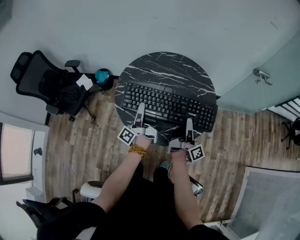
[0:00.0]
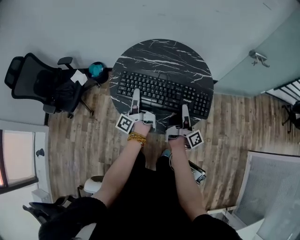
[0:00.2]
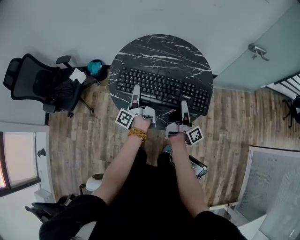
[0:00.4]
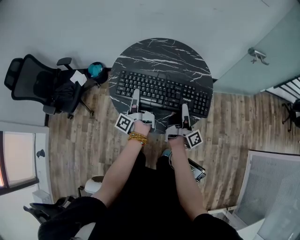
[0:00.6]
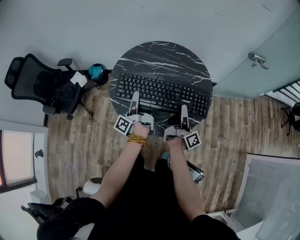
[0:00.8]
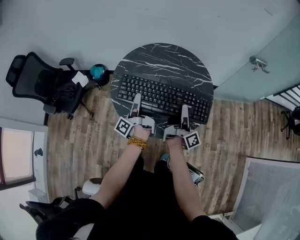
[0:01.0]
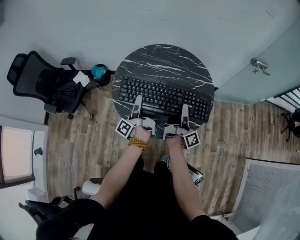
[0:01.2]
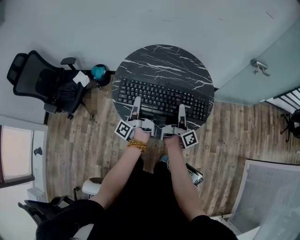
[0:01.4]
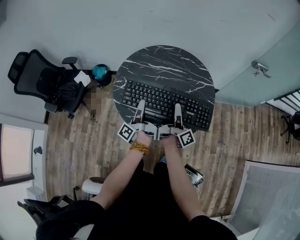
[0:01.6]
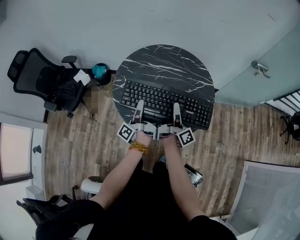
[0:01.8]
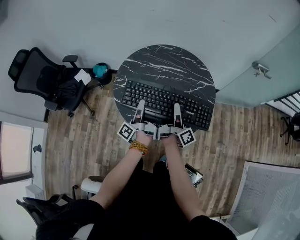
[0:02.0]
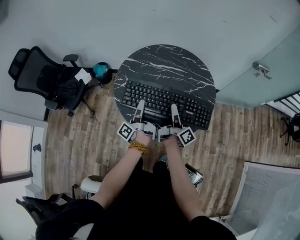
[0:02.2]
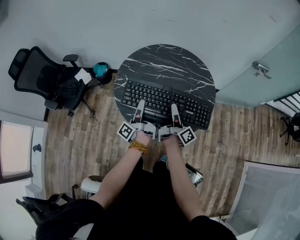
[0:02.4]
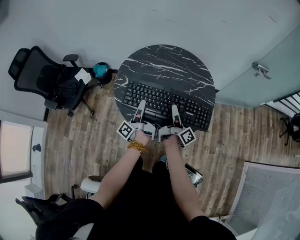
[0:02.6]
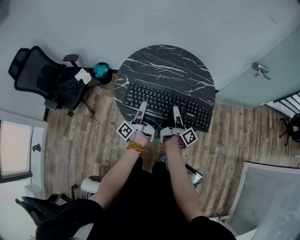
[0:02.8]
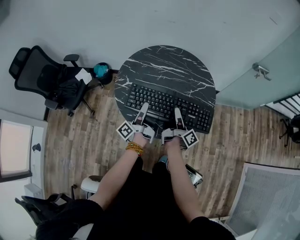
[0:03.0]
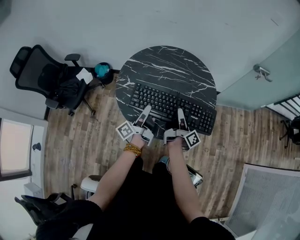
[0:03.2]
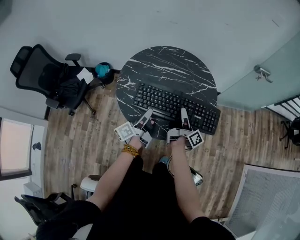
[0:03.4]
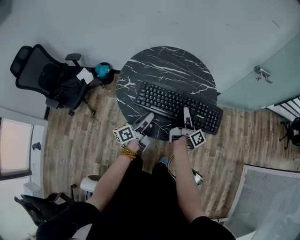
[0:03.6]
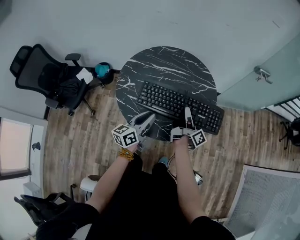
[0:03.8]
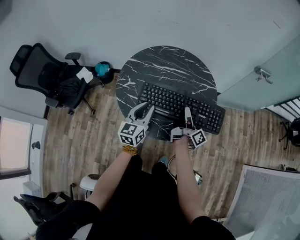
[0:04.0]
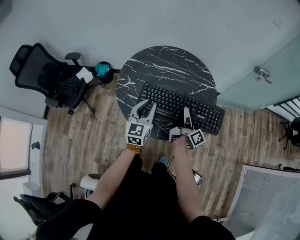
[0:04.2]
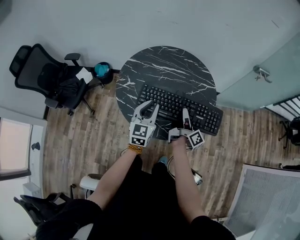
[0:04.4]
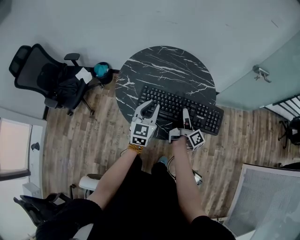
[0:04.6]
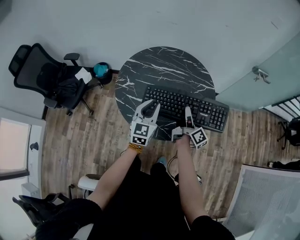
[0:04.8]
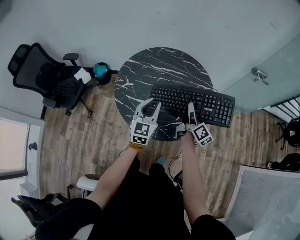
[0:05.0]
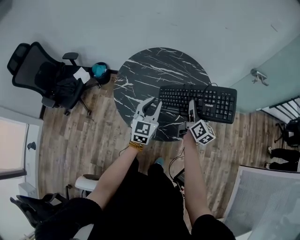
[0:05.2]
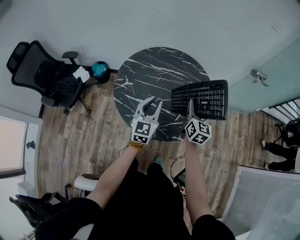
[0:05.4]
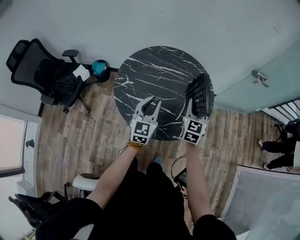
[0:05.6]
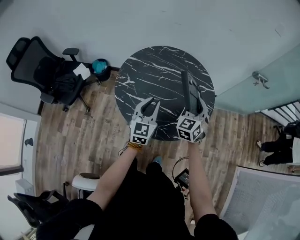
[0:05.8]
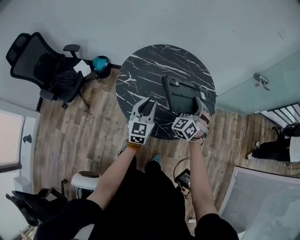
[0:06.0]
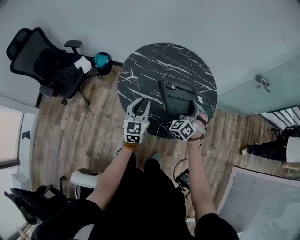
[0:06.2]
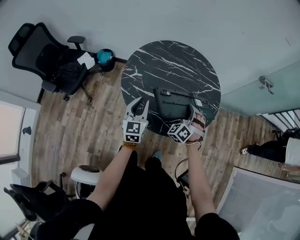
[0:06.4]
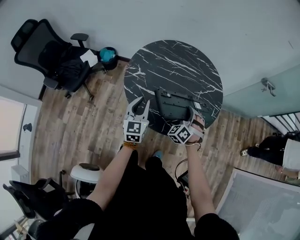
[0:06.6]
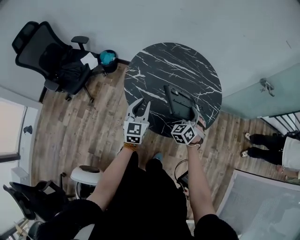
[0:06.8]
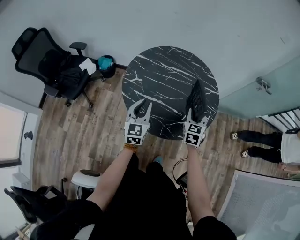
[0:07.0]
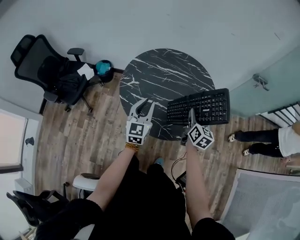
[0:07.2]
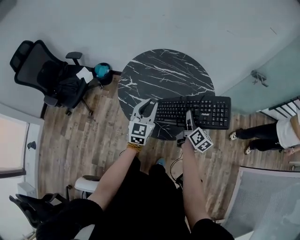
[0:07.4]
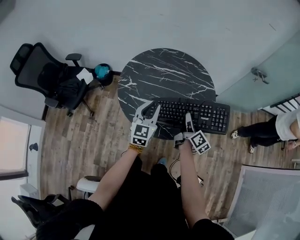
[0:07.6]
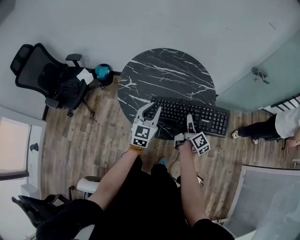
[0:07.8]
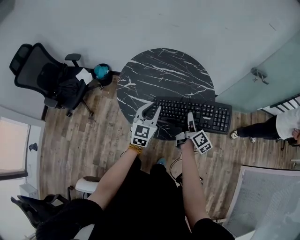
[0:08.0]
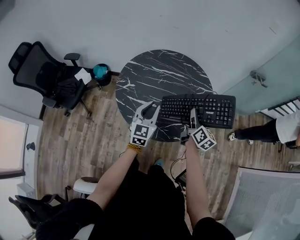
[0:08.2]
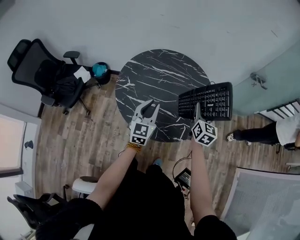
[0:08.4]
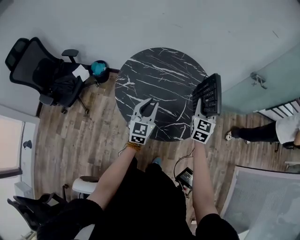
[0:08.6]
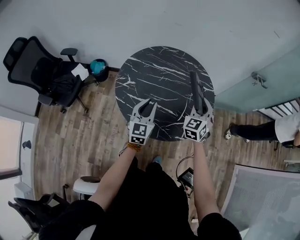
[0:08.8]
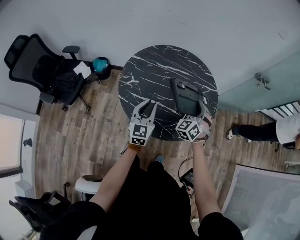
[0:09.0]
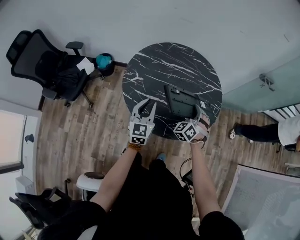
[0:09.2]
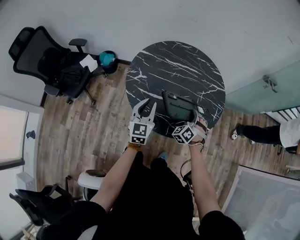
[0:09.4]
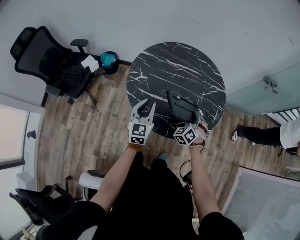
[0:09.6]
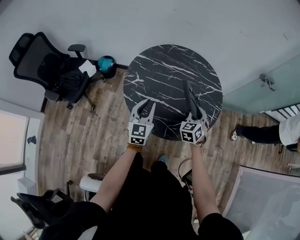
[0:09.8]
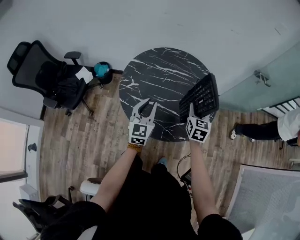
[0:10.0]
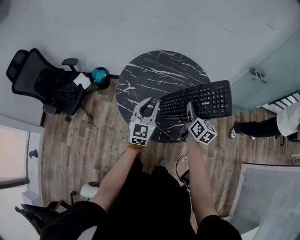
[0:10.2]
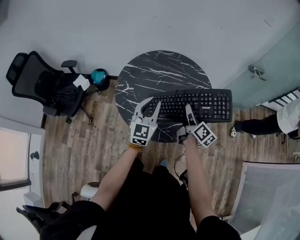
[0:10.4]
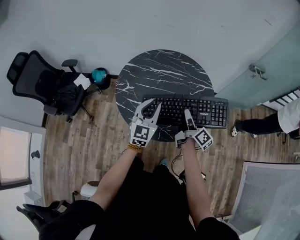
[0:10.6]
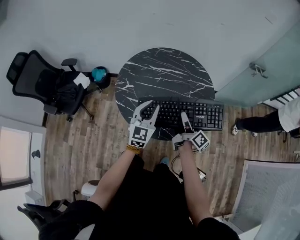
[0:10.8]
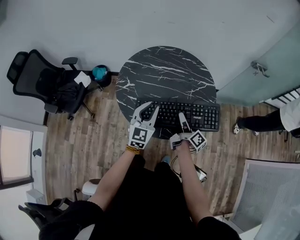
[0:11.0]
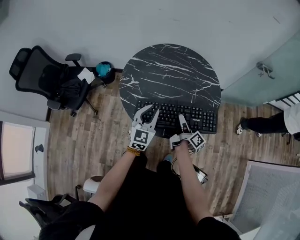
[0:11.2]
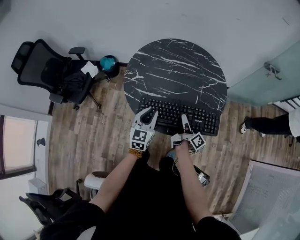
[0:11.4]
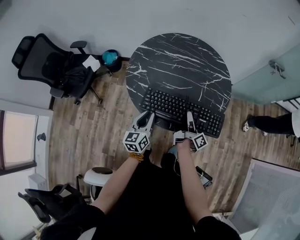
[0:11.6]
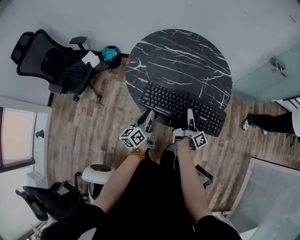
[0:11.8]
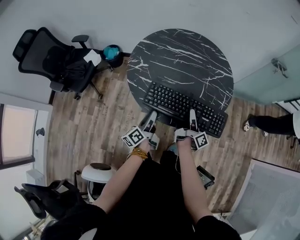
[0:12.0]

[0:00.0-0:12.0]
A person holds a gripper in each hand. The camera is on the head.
0:00.0 to 0:01.6: The right gripper moves to the left, roughly 5 cm.
0:01.6 to 0:03.0: The grippers make only small movements.
0:03.0 to 0:04.4: The left gripper moves roughly 5 cm, and rotates around the line of its fingers by about 90 degrees, clockwise from behind.
0:04.4 to 0:06.0: The right gripper goes approximately 5 cm upward, and rolls counterclockwise, seen from behind, by roughly 140 degrees.
0:06.0 to 0:07.6: The left gripper travels to the left and back again, approximately 5 cm each way. Meanwhile the right gripper moves backward and downward, some 10 cm, and rolls clockwise, seen from behind, by approximately 110 degrees.
0:07.6 to 0:09.0: The right gripper shifts approximately 5 cm forward, travels upward and back again, roughly 10 cm each way, and rotates around the line of its fingers by some 110 degrees, counterclockwise from behind. The left gripper shifts approximately 5 cm to the left.
0:09.0 to 0:10.4: The right gripper reaches roughly 10 cm downward, then returns, and rolls clockwise, seen from behind, by roughly 100 degrees, while the left gripper is displaced upward and to the right by approximately 10 cm.
0:10.4 to 0:12.0: The two grippers go some 20 cm downward and backward. The right gripper changes its angle by about 40 degrees, while the left gripper rotates around the line of its fingers by some 70 degrees, counterclockwise from behind.

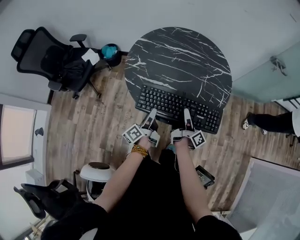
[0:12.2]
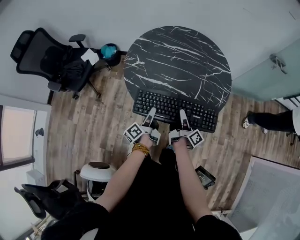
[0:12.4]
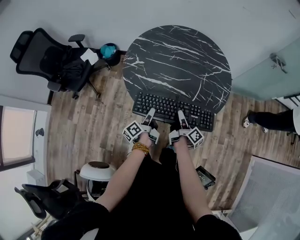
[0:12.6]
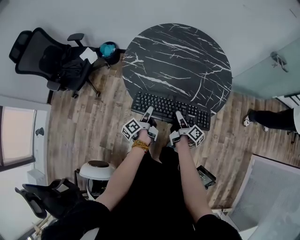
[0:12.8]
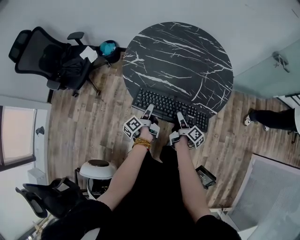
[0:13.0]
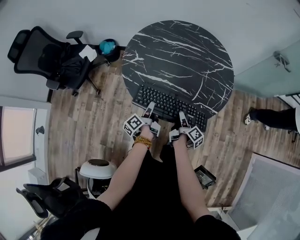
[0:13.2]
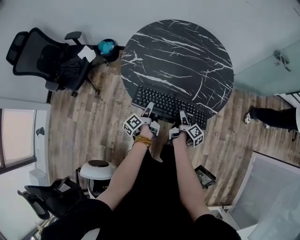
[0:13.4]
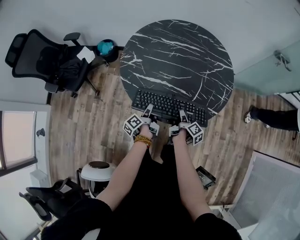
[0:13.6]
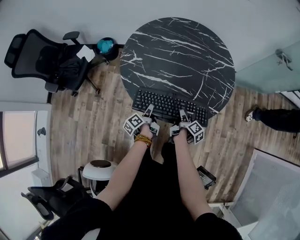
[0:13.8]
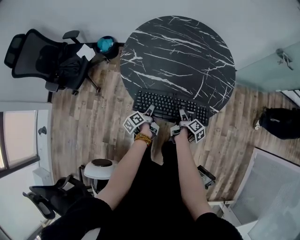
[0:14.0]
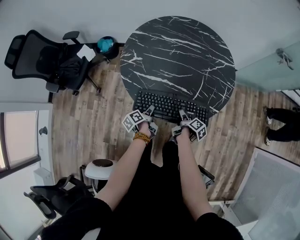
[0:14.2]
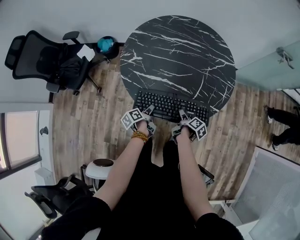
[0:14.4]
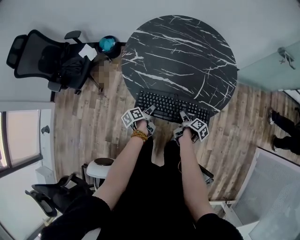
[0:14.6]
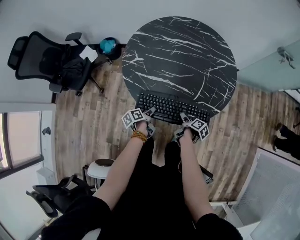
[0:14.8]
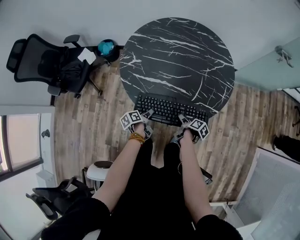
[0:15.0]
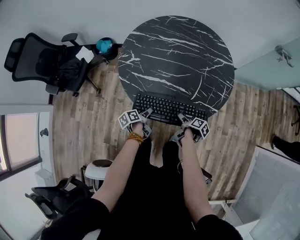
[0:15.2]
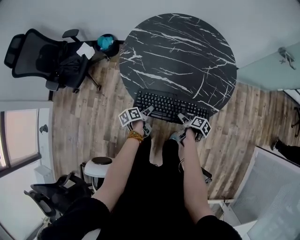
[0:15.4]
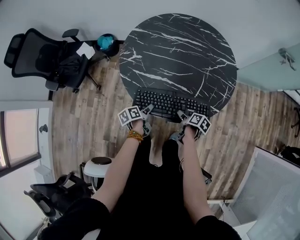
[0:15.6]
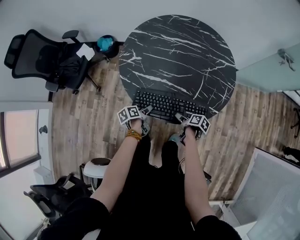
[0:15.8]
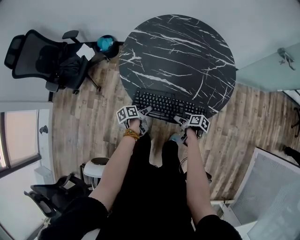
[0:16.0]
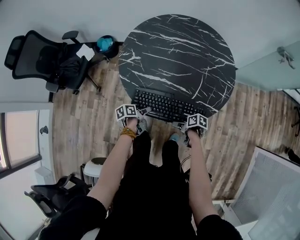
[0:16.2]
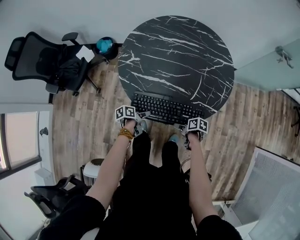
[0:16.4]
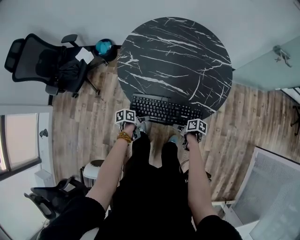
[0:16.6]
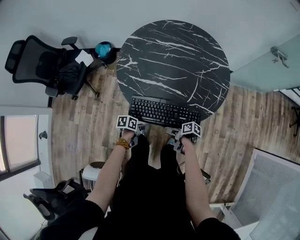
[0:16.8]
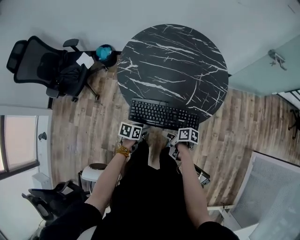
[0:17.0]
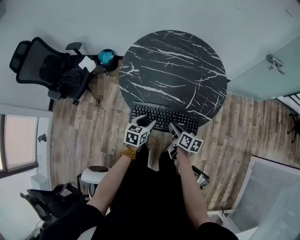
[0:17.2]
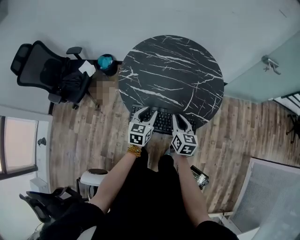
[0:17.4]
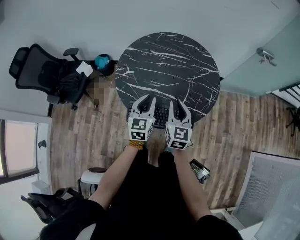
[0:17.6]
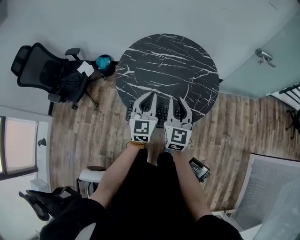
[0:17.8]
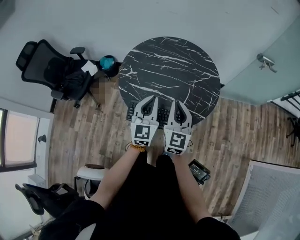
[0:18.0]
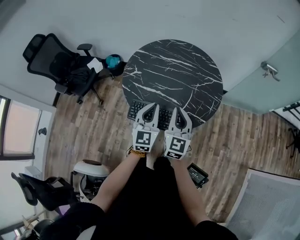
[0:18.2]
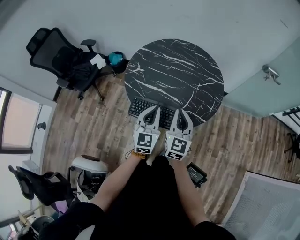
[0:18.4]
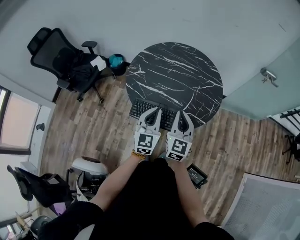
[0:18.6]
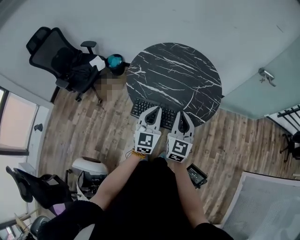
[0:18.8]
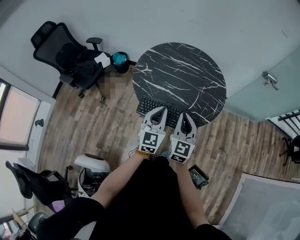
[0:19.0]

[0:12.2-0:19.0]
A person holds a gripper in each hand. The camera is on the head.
0:12.2 to 0:13.6: The grippers both shift downward by about 10 cm. The left gripper turns by roughly 20 degrees. Meanwhile the right gripper angles its fingers downward, by about 30 degrees.
0:13.6 to 0:15.0: The left gripper shifts by roughly 5 cm, turns by some 30 degrees, and opens, while the right gripper ends up roughly 5 cm from where it was, changes its angle by roughly 30 degrees, and opens its fingers.
0:15.0 to 0:16.2: The right gripper swivels roughly 40 degrees.
0:16.2 to 0:17.6: Both grippers travel together upward, about 30 cm. The left gripper rotates around the line of its fingers by approximately 70 degrees, clockwise from behind, and closes its fingers; the right gripper angles its fingers upward, by some 30 degrees, and closes.
0:17.6 to 0:19.0: The two grippers go some 10 cm backward.

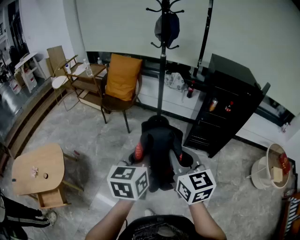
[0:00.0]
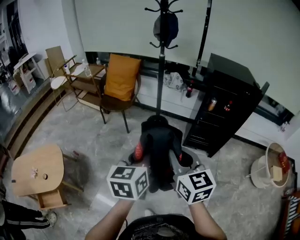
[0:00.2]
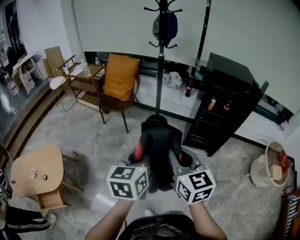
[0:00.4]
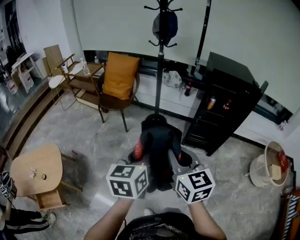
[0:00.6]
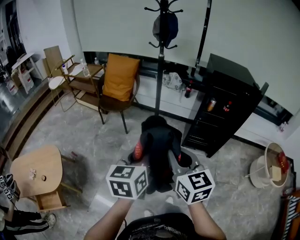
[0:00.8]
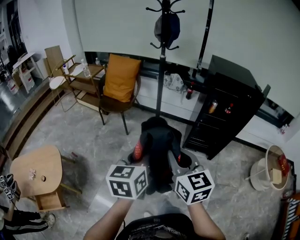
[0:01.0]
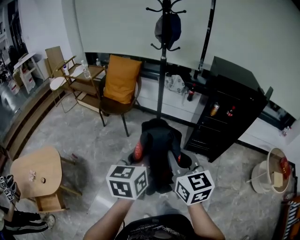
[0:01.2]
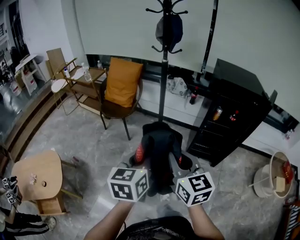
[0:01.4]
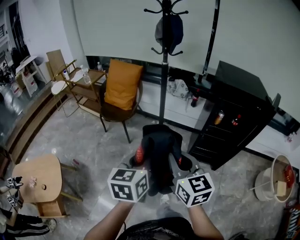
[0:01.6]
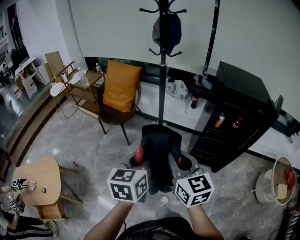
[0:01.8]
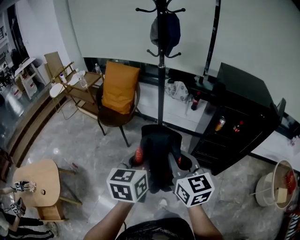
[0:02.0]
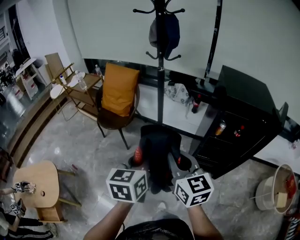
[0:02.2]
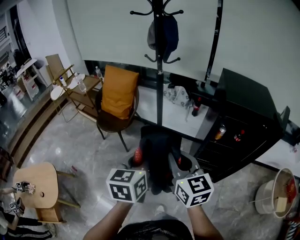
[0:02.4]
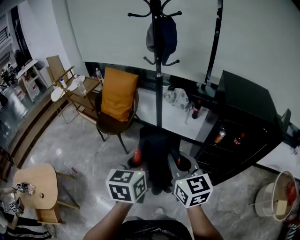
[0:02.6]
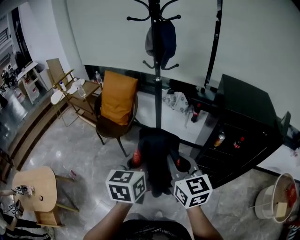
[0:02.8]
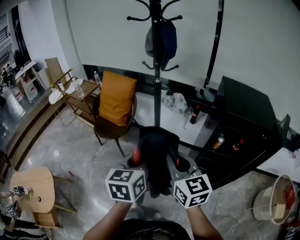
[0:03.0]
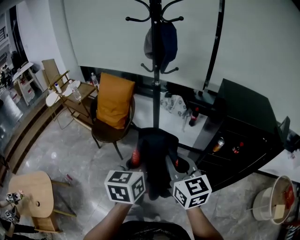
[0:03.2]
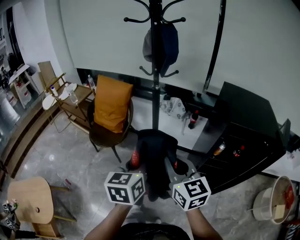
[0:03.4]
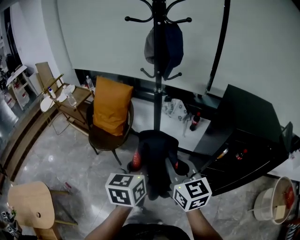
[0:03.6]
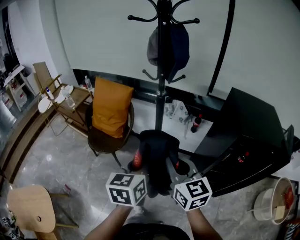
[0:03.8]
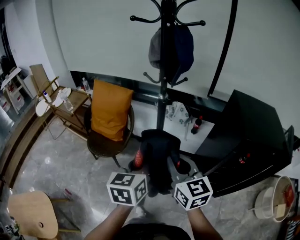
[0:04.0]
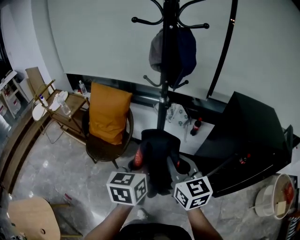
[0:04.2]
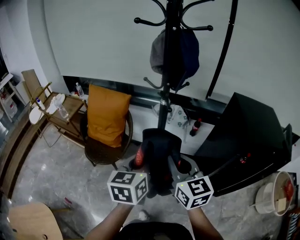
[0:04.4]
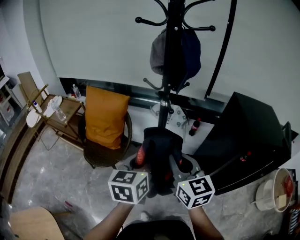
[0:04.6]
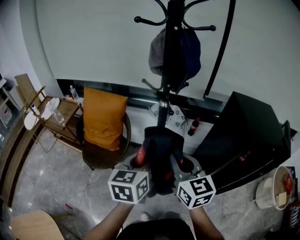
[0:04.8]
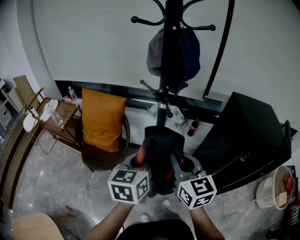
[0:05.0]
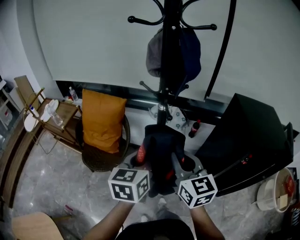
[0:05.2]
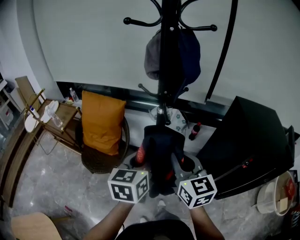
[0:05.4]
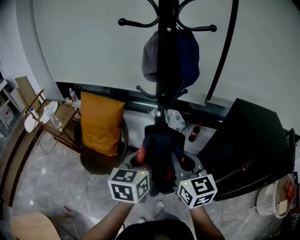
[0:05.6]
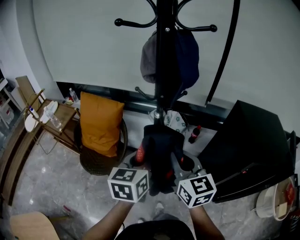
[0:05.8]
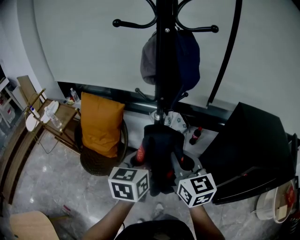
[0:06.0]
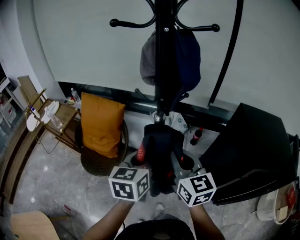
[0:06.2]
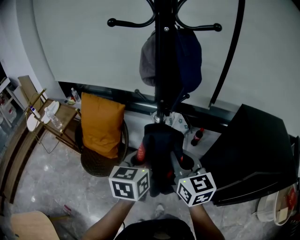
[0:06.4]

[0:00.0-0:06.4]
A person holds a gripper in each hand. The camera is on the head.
0:00.0 to 0:01.6: The grippers both shift forward by about 15 cm.
0:01.6 to 0:03.2: Both grippers travel together forward, roughly 20 cm.
0:03.2 to 0:04.8: Both grippers travel together forward and to the left, about 20 cm.
0:04.8 to 0:06.4: The grippers both shift forward by some 10 cm.
